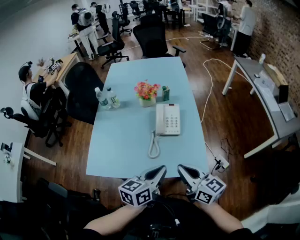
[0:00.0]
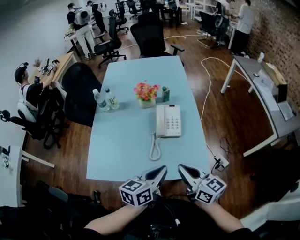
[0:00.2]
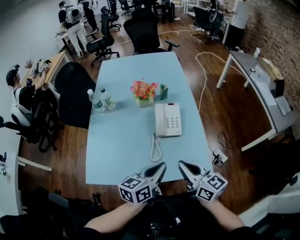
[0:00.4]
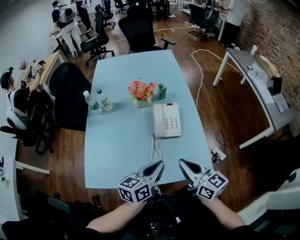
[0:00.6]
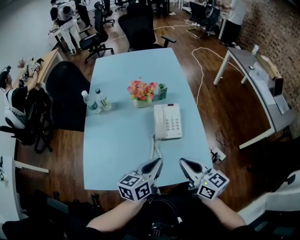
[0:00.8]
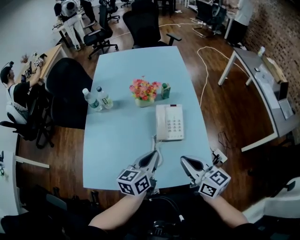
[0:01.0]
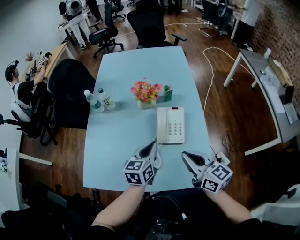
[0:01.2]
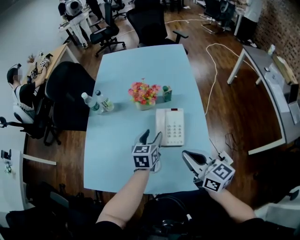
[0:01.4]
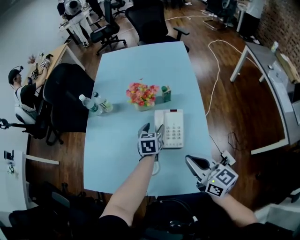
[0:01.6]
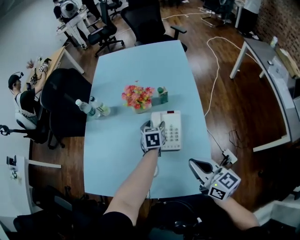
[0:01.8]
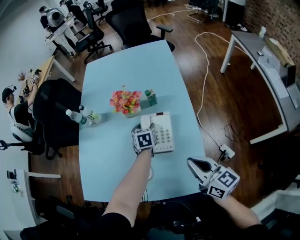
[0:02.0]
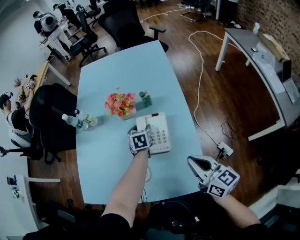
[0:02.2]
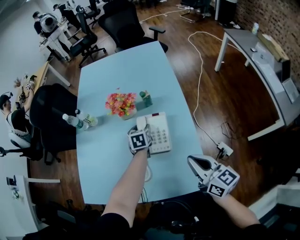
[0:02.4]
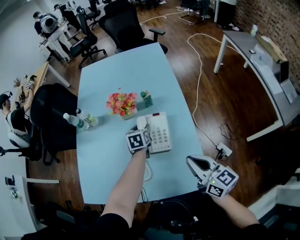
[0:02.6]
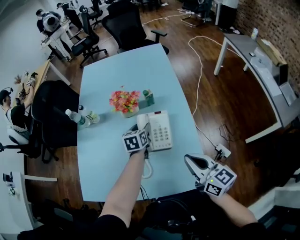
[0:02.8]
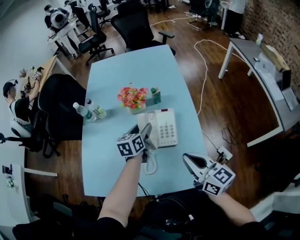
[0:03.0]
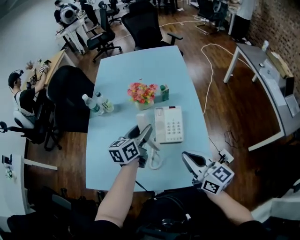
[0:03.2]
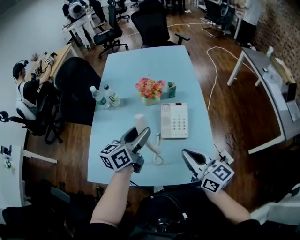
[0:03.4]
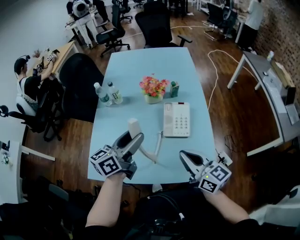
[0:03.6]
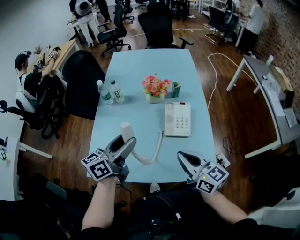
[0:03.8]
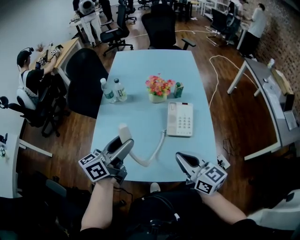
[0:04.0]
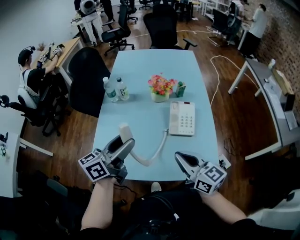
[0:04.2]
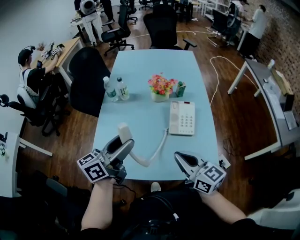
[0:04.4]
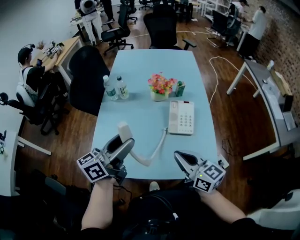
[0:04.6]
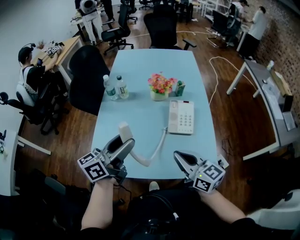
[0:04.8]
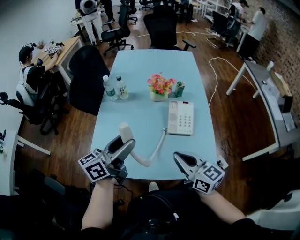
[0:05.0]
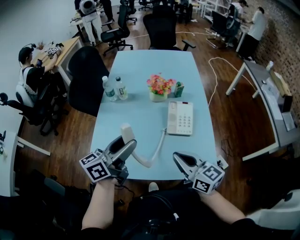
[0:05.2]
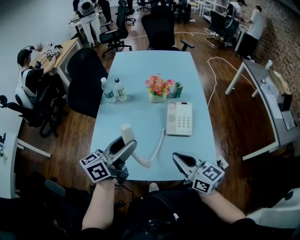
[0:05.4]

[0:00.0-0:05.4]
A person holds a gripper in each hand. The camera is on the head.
0:00.0 to 0:01.4: The right gripper is displaced forward by roughly 20 cm. The left gripper goes about 30 cm forward, rotates approximately 30 degrees, and opens.
0:01.4 to 0:02.8: The left gripper is displaced forward by approximately 10 cm. The right gripper is displaced to the right by approximately 5 cm.
0:02.8 to 0:04.0: The left gripper shifts about 40 cm backward, upward and to the left, and angles its fingers upward, by roughly 40 degrees. The right gripper moves to the left, approximately 15 cm.
0:04.0 to 0:05.4: The grippers move only a little.

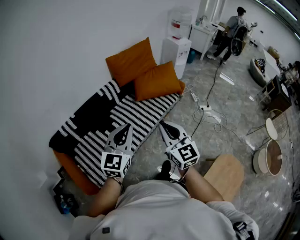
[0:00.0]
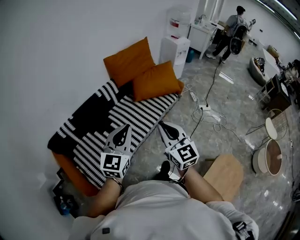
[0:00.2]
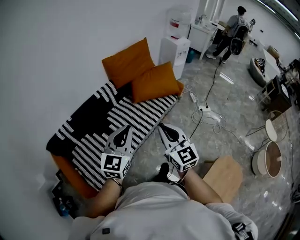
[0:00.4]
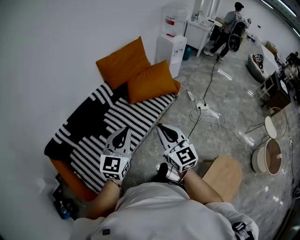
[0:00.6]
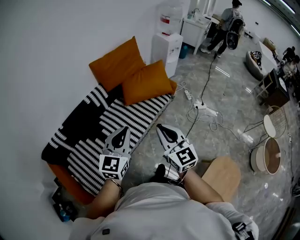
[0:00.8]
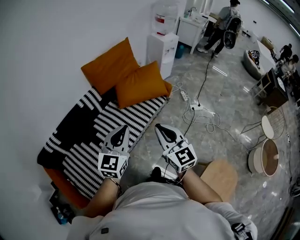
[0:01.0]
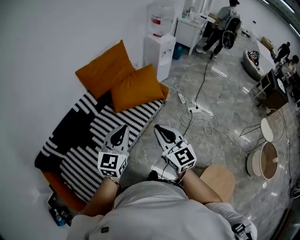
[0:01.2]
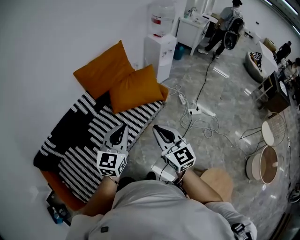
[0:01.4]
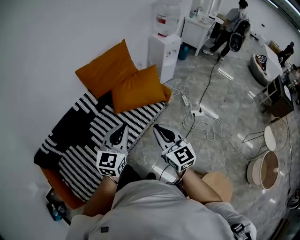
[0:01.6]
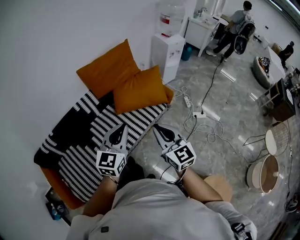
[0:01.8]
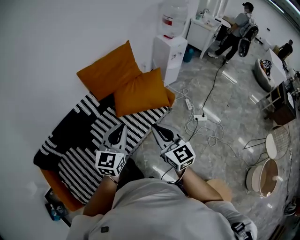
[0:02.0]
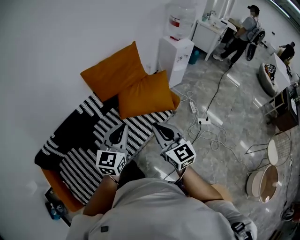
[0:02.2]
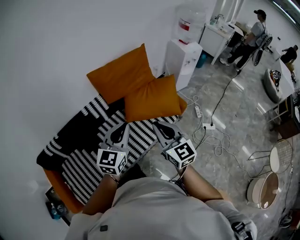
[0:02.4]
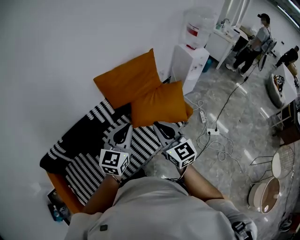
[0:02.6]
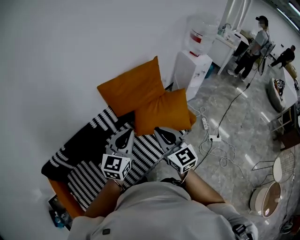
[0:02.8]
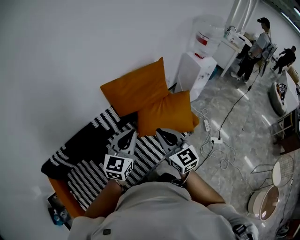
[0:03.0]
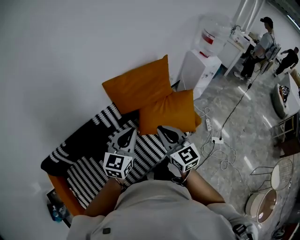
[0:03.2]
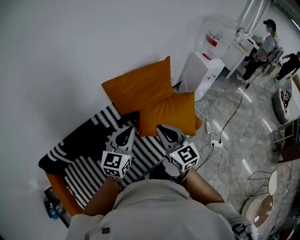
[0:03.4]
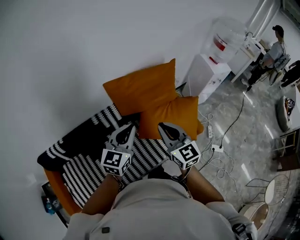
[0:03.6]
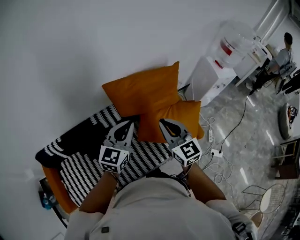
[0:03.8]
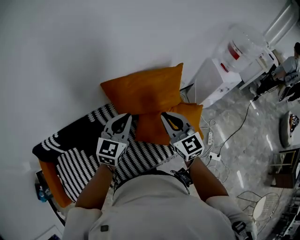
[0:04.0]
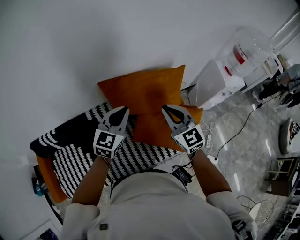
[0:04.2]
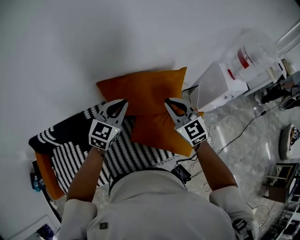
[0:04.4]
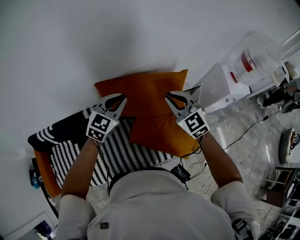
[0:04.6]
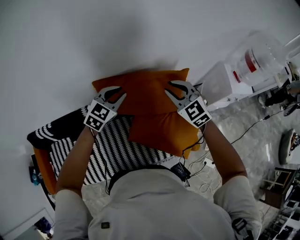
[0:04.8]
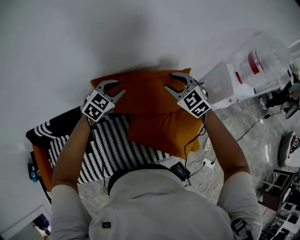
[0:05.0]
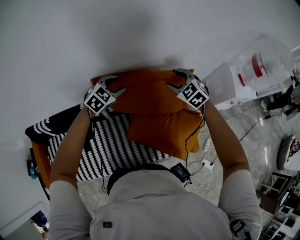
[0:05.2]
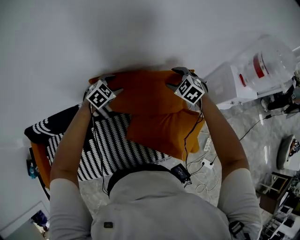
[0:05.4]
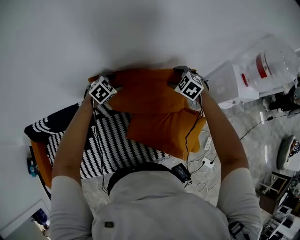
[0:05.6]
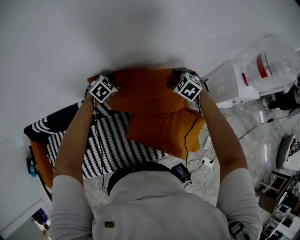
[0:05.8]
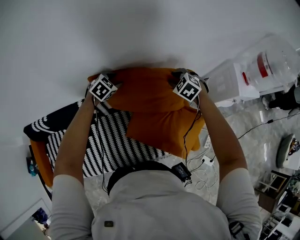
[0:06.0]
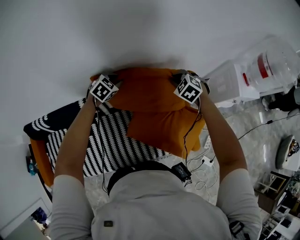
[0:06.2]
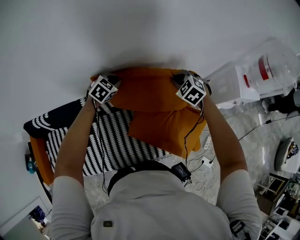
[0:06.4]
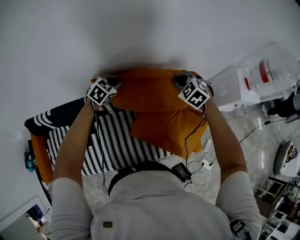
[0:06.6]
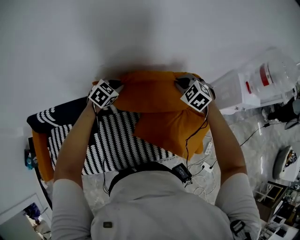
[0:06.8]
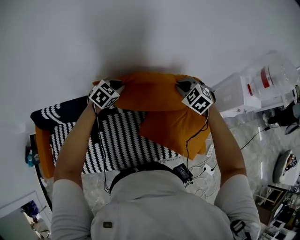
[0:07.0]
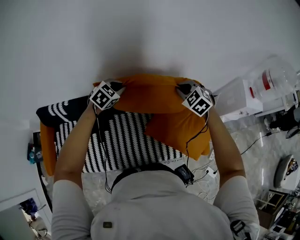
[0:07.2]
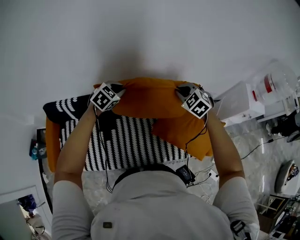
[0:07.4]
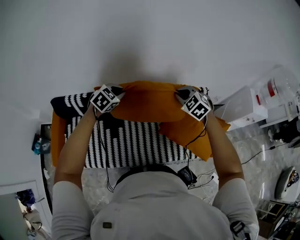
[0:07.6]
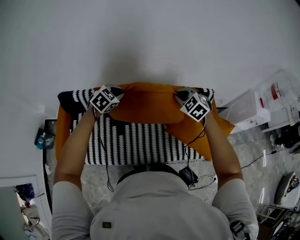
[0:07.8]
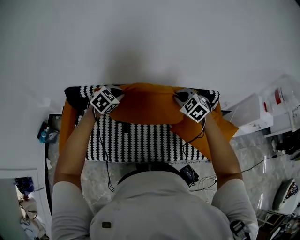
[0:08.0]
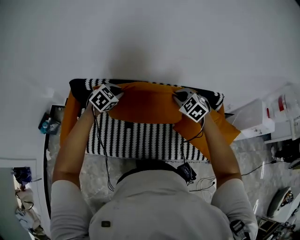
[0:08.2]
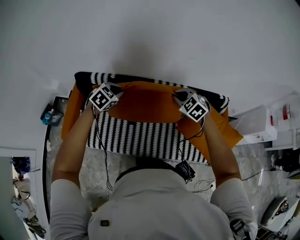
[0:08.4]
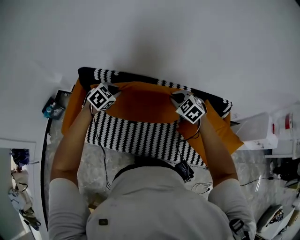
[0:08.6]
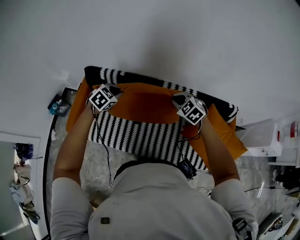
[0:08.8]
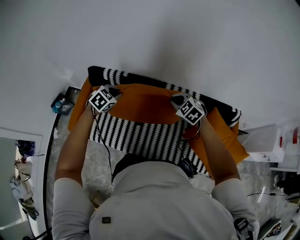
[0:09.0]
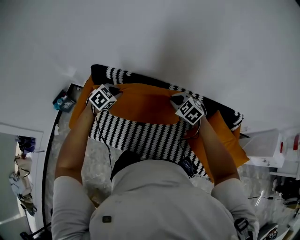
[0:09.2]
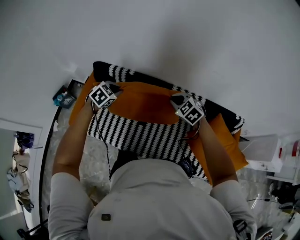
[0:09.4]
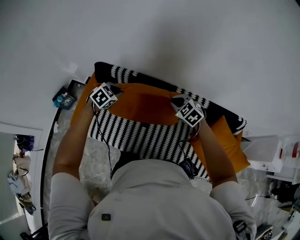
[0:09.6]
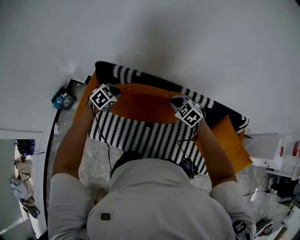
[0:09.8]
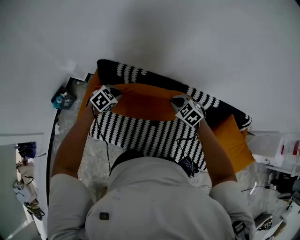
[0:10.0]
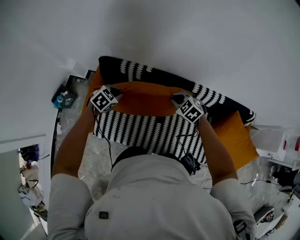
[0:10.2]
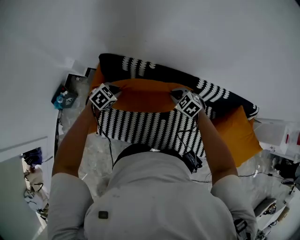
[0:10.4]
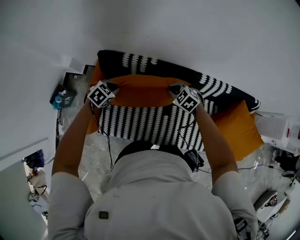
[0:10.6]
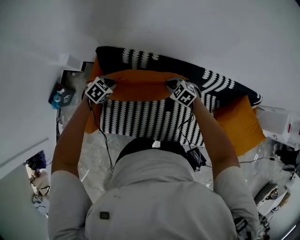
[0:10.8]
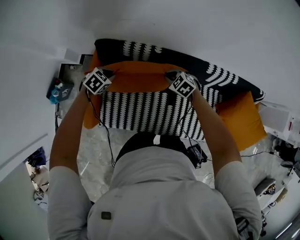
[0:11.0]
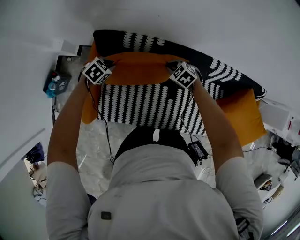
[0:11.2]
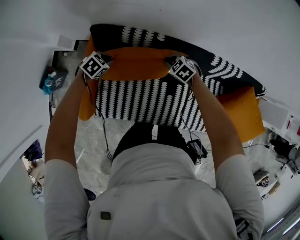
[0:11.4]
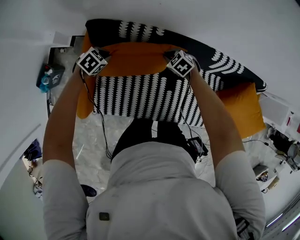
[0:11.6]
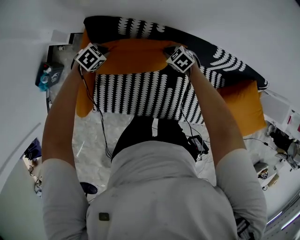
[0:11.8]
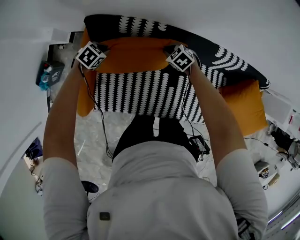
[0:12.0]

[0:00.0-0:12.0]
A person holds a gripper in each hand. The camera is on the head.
0:00.0 to 0:01.6: The left gripper travels forward and to the right by approximately 35 cm, while the right gripper travels to the right and forward by approximately 30 cm.
0:01.6 to 0:03.0: The two grippers go some 30 cm forward and to the left.
0:03.0 to 0:04.4: The grippers both shift forward by about 35 cm. The right gripper turns by roughly 30 degrees.
0:04.4 to 0:06.0: The left gripper heads downward and forward, covering about 30 cm, angles its fingers downward, by about 40 degrees, and opens, while the right gripper is displaced forward and downward by roughly 30 cm, angles its fingers downward, by about 40 degrees, and opens its fingers.
0:06.0 to 0:07.6: Both grippers travel together to the left, backward and upward, roughly 40 cm. The right gripper closes its fingers; the left gripper closes.
0:07.6 to 0:09.0: The left gripper ends up about 25 cm from where it was, and turns by about 20 degrees. The right gripper moves some 25 cm, and changes its angle by some 20 degrees.
0:09.0 to 0:10.4: The left gripper travels to the left, downward and forward by about 30 cm, while the right gripper is displaced to the left, forward and downward by approximately 30 cm.
0:10.4 to 0:12.0: The two grippers go approximately 20 cm downward.

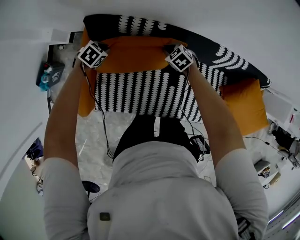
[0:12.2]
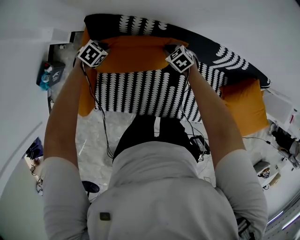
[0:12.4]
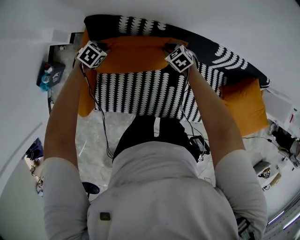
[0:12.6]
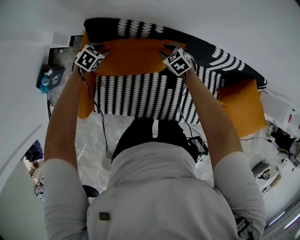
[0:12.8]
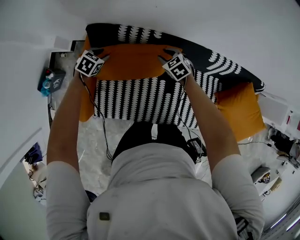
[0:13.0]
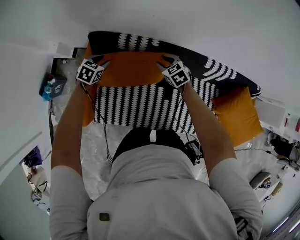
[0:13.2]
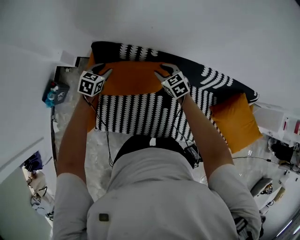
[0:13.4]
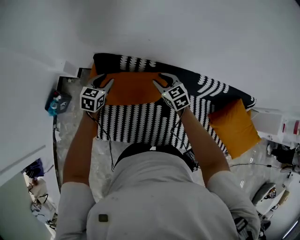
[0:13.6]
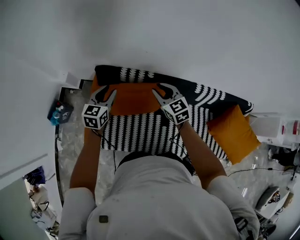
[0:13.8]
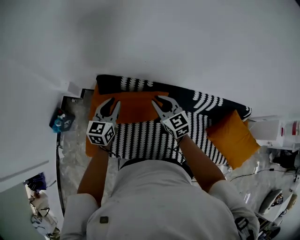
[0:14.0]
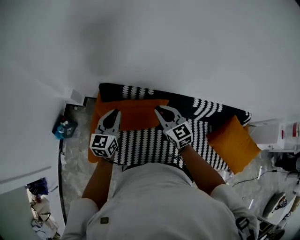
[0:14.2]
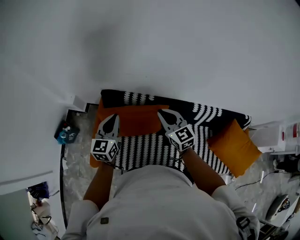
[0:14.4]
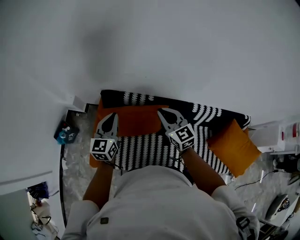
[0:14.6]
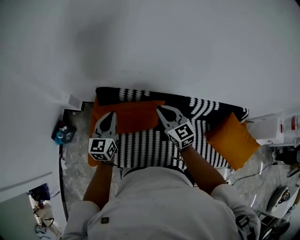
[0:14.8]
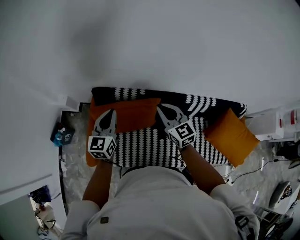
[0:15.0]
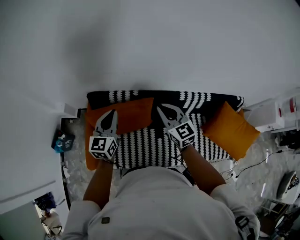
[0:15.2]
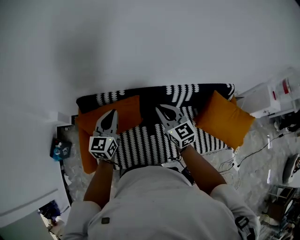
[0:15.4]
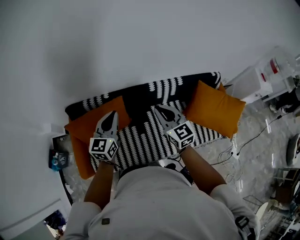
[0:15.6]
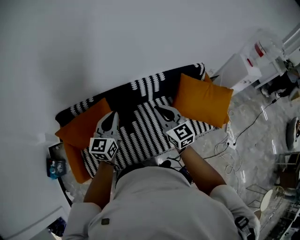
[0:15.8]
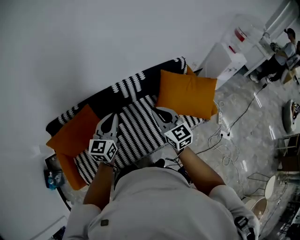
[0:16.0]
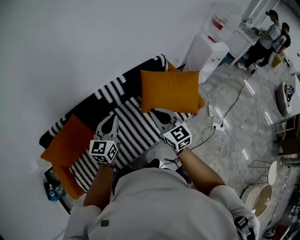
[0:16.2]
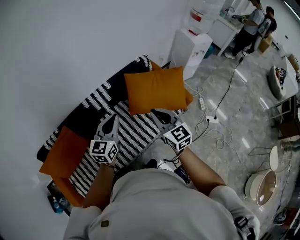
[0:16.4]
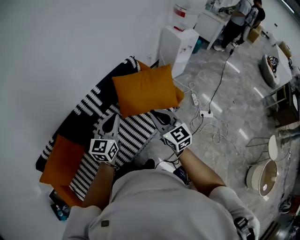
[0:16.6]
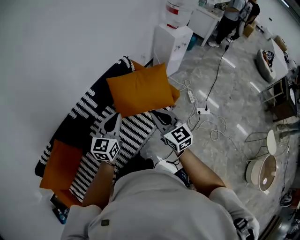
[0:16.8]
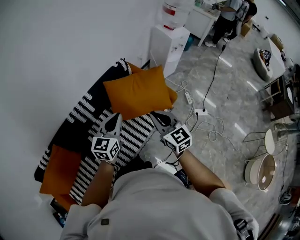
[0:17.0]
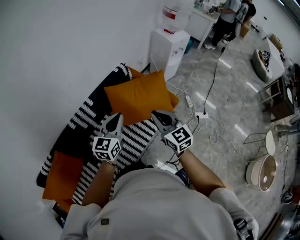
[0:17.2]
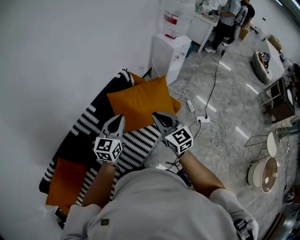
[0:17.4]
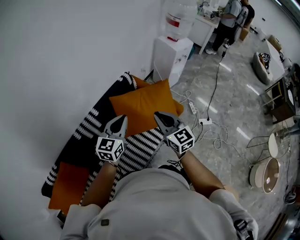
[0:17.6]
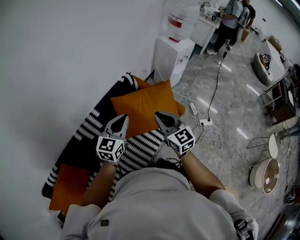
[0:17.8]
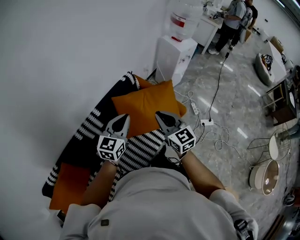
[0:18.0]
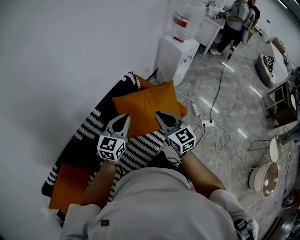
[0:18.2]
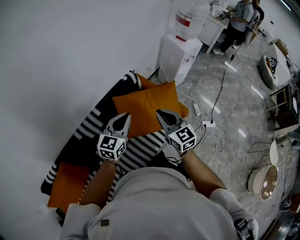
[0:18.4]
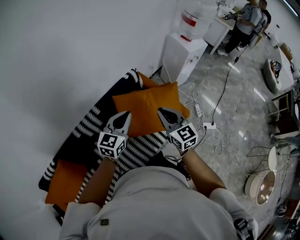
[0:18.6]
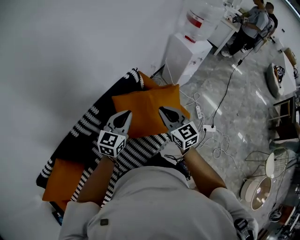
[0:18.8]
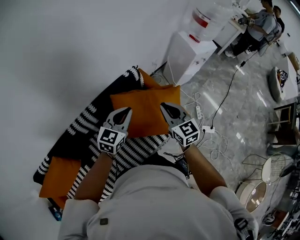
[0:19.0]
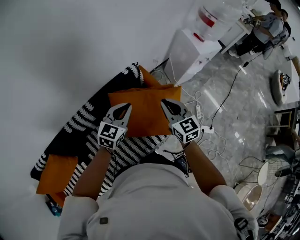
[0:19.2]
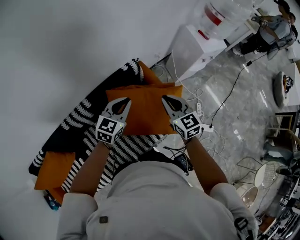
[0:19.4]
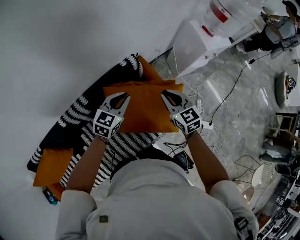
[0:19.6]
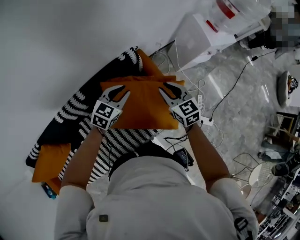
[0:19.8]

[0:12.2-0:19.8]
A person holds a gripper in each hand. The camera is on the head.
0:12.2 to 0:13.8: The grippers both shift upward by approximately 30 cm. The left gripper tips its fingers upward by about 40 degrees, and opens up; the right gripper points its fingers about 40 degrees further upward.
0:13.8 to 0:15.2: Both grippers move upward, to the right and backward, approximately 20 cm. The left gripper closes up.
0:15.2 to 0:16.8: The two grippers travel together, some 70 cm. The left gripper changes its angle by about 50 degrees. The right gripper changes its angle by about 50 degrees.
0:16.8 to 0:18.2: Both grippers move forward, some 15 cm.
0:18.2 to 0:19.8: The grippers both shift forward and downward by roughly 35 cm. The left gripper turns by some 20 degrees. Meanwhile the right gripper swivels approximately 20 degrees.
